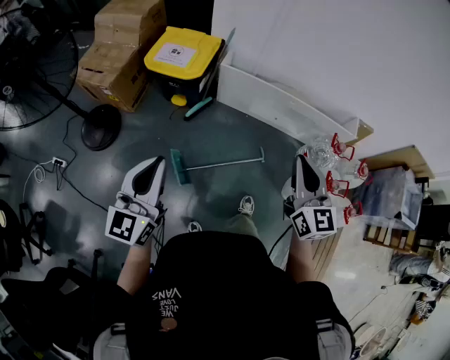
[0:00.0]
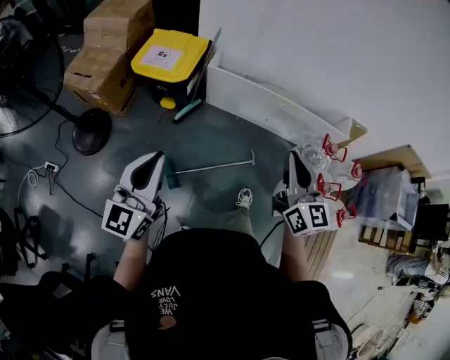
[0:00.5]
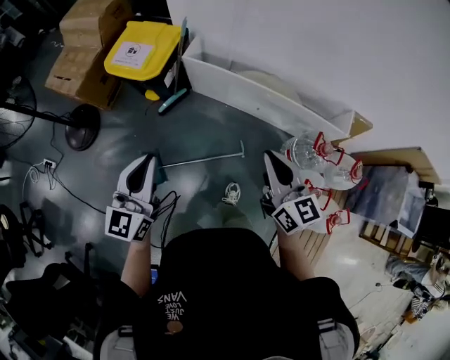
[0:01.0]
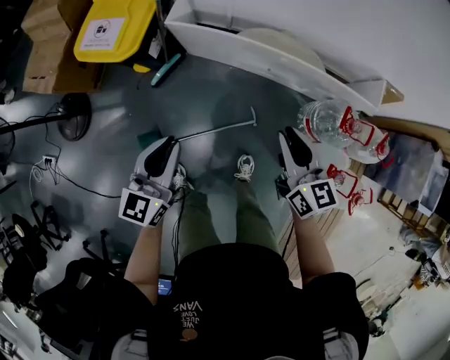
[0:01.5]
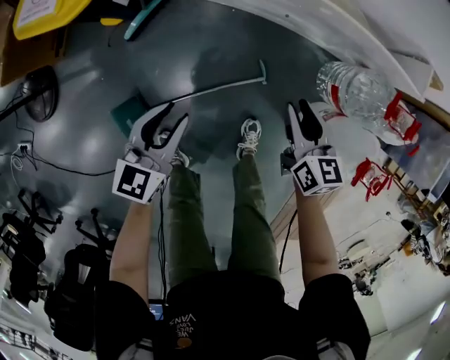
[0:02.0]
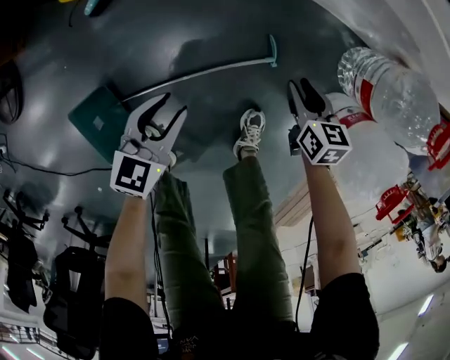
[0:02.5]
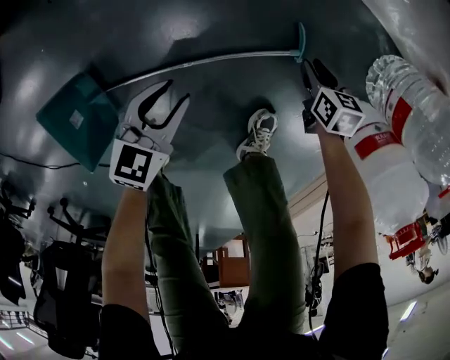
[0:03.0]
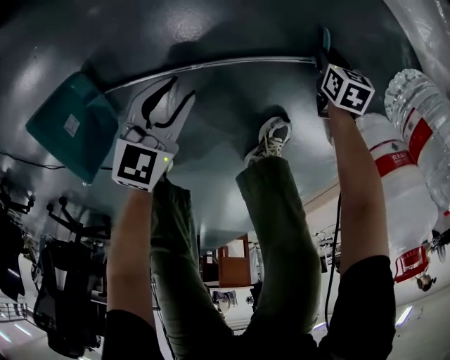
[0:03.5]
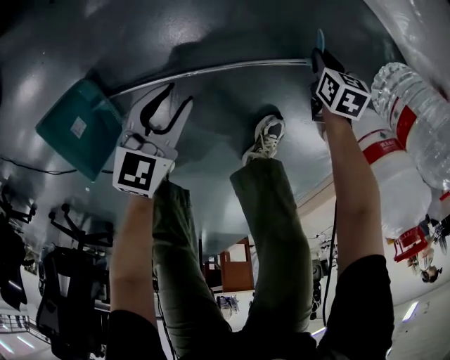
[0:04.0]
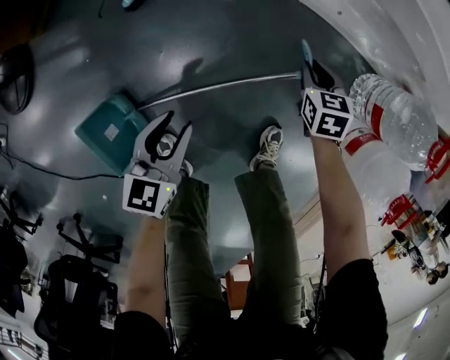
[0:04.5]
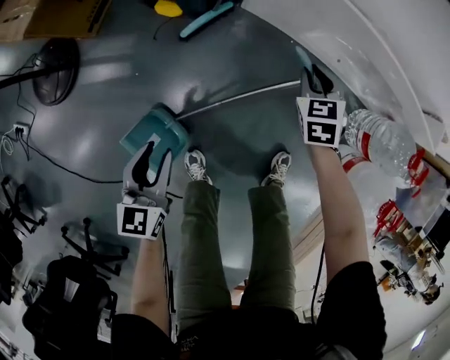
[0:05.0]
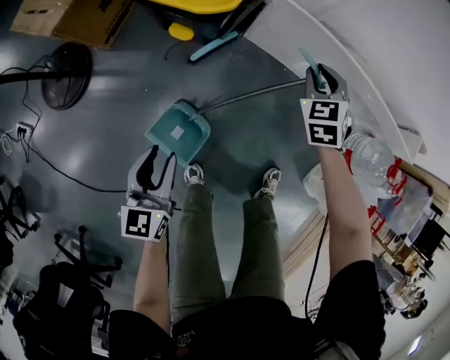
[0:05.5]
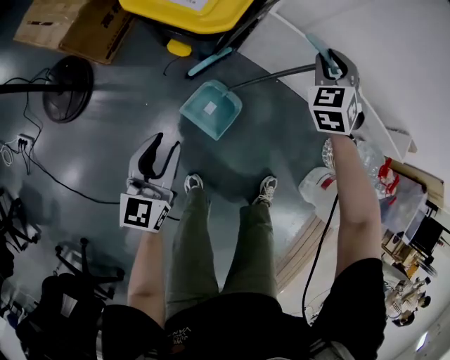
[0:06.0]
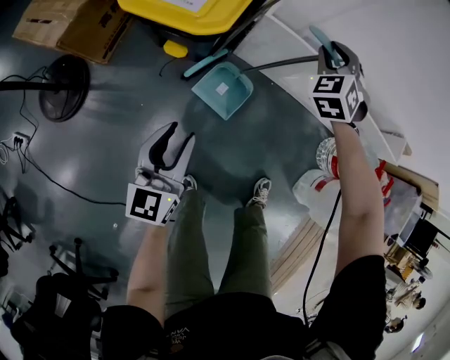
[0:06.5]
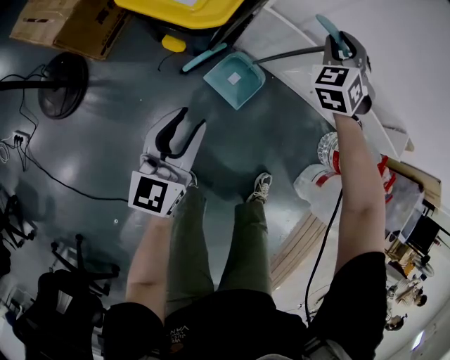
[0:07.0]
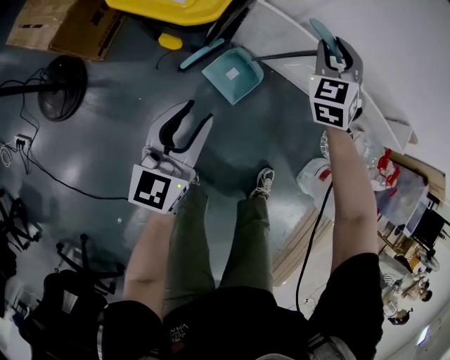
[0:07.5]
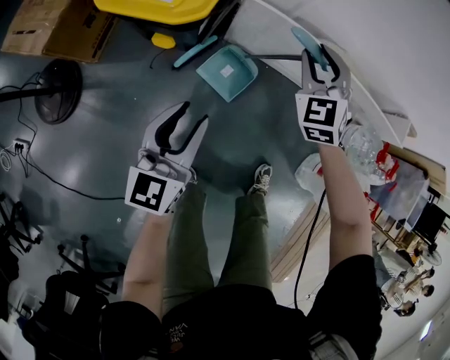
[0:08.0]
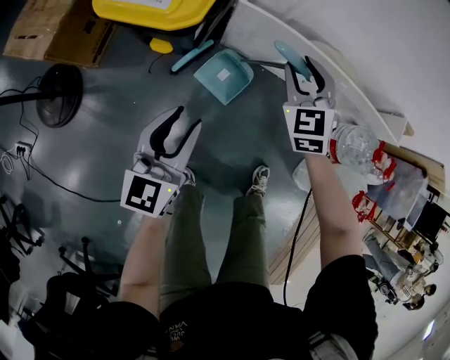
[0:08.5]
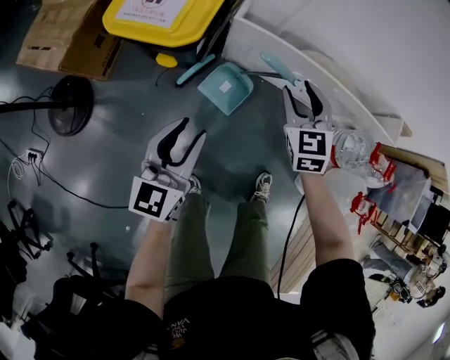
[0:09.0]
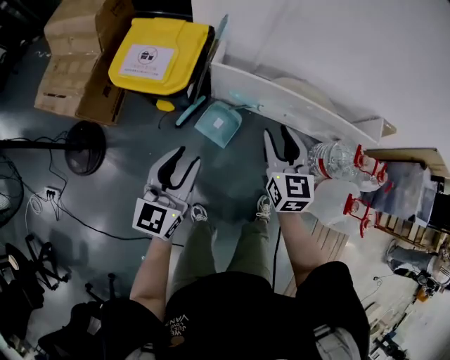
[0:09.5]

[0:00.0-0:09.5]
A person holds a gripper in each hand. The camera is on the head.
0:00.0 to 0:02.0: The left gripper travels downward, forward and to the right by about 60 cm, angles its fingers downward, by roughly 30 degrees, and opens; the right gripper shifts about 50 cm downward and forward, rotates approximately 40 degrees, and opens its fingers.
0:02.0 to 0:04.0: Both grippers move downward, about 40 cm. The right gripper tips its fingers downward by some 40 degrees.
0:04.0 to 0:05.5: Both grippers move upward and to the left, some 50 cm. The left gripper turns by approximately 30 degrees. The right gripper rotates around the line of its fingers by roughly 40 degrees, counterclockwise from behind.
0:05.5 to 0:07.5: The right gripper shifts roughly 15 cm upward and forward; the left gripper is displaced forward, upward and to the right by roughly 15 cm.
0:07.5 to 0:09.5: The right gripper heads backward and upward, covering about 20 cm, and rolls clockwise, seen from behind, by approximately 40 degrees; the left gripper heads upward, covering approximately 15 cm.

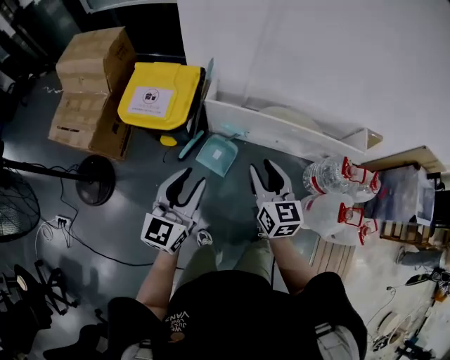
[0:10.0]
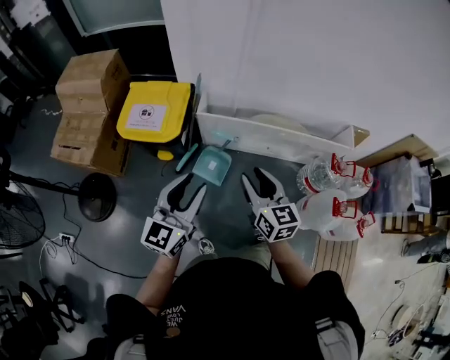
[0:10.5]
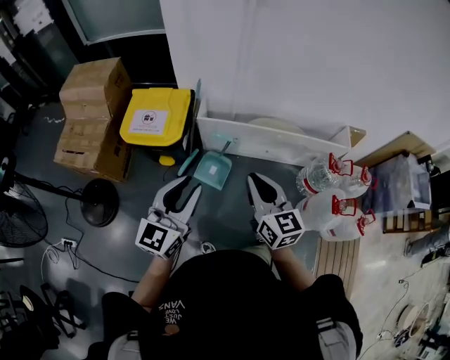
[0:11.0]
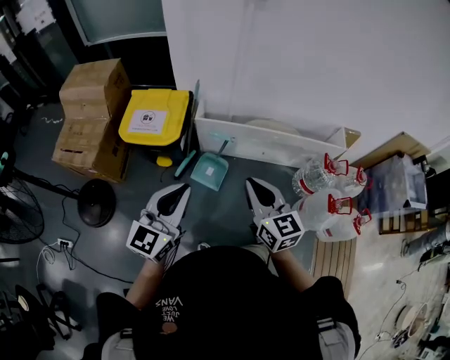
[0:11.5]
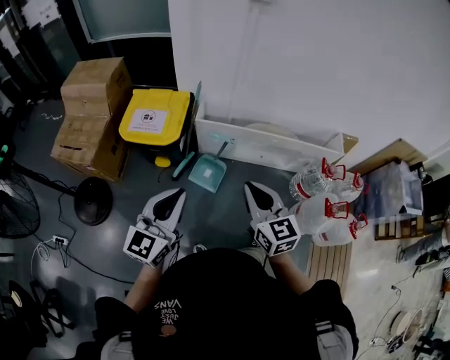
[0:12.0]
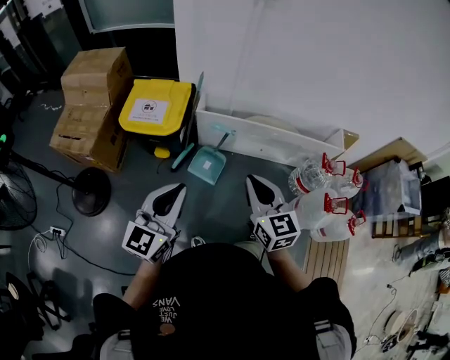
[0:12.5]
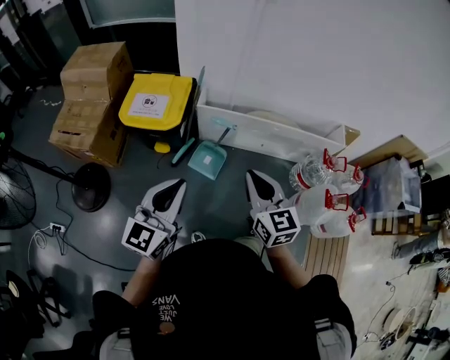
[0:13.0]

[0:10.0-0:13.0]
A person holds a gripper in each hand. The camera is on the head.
0:10.0 to 0:11.5: Both grippers travel together backward and upward, roughly 15 cm. The right gripper closes its fingers, while the left gripper closes.
0:11.5 to 0:13.0: There are only small adjustments of the grippers.

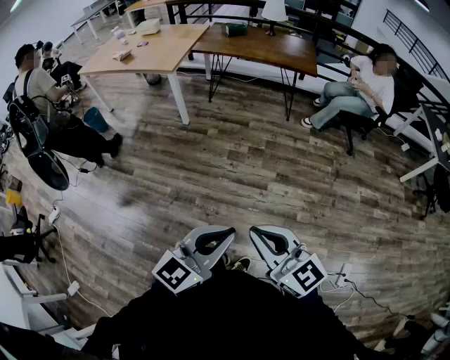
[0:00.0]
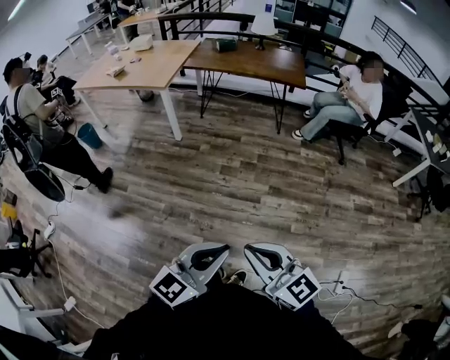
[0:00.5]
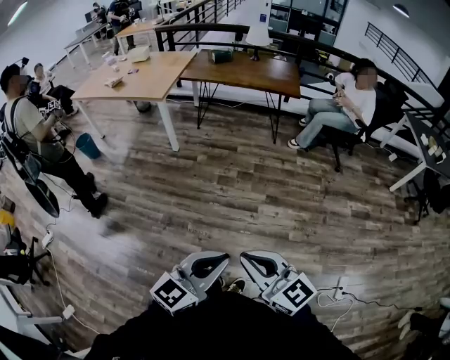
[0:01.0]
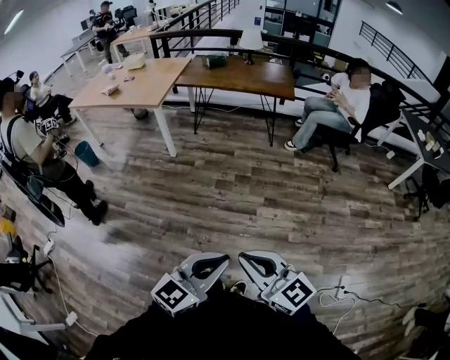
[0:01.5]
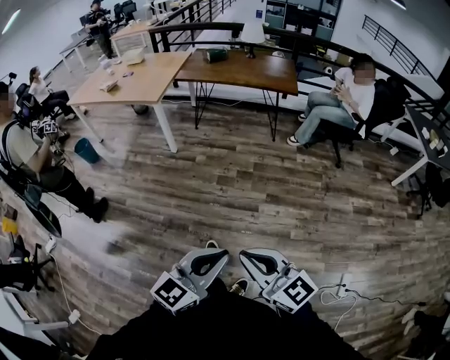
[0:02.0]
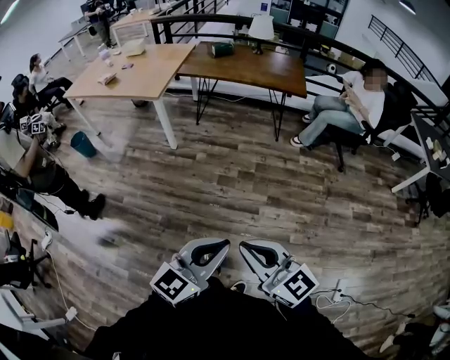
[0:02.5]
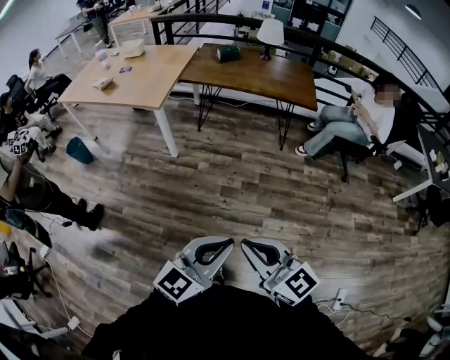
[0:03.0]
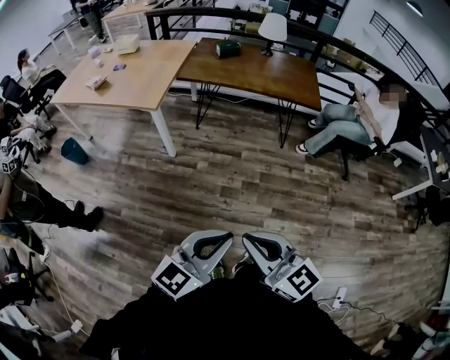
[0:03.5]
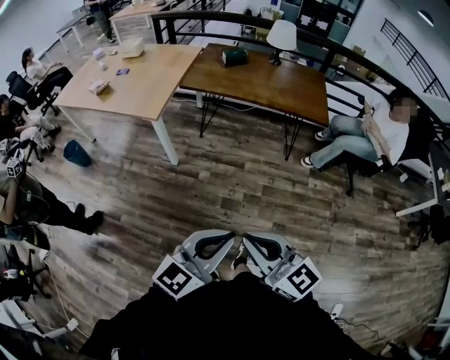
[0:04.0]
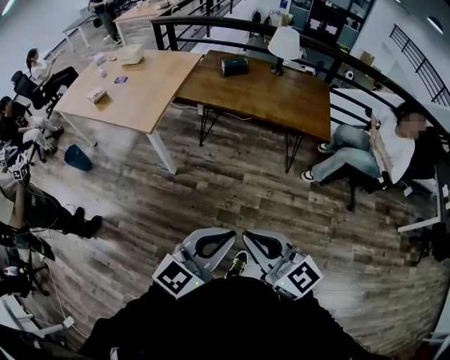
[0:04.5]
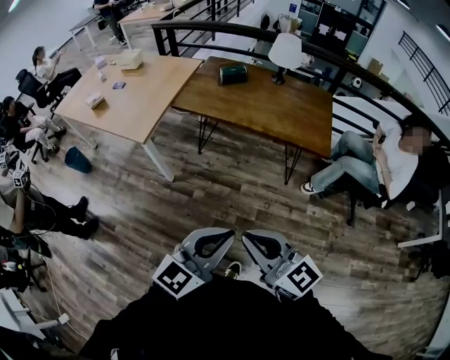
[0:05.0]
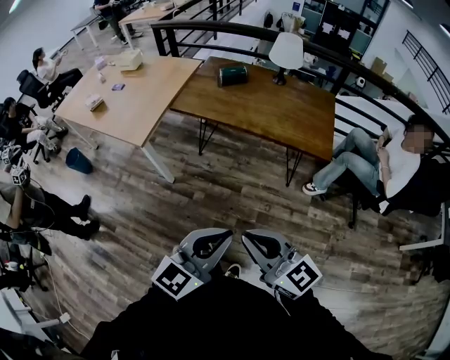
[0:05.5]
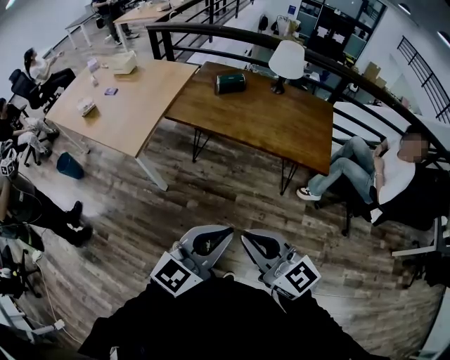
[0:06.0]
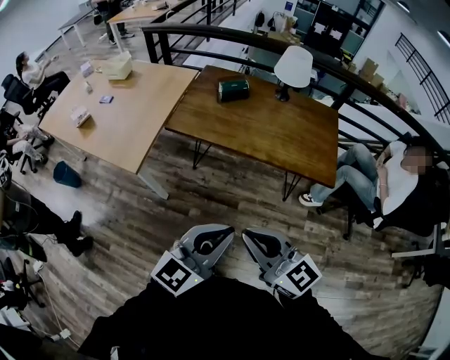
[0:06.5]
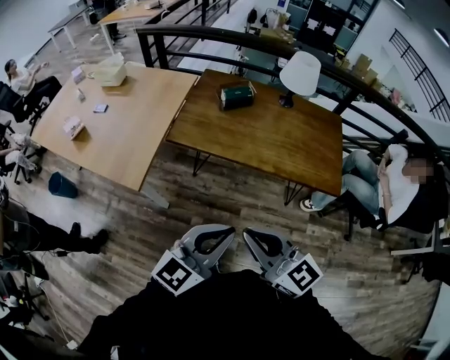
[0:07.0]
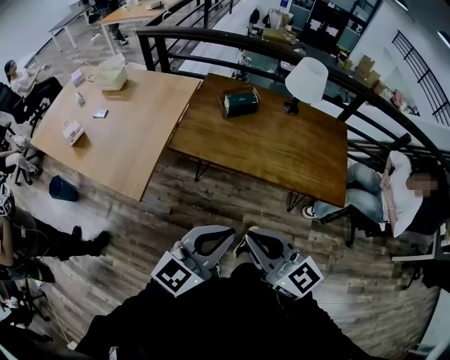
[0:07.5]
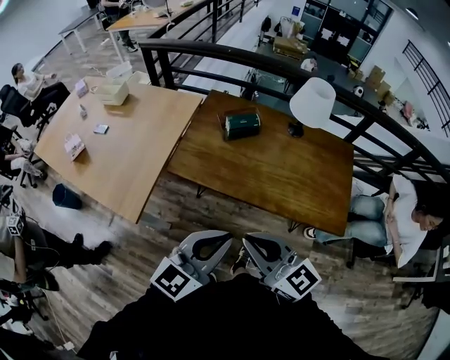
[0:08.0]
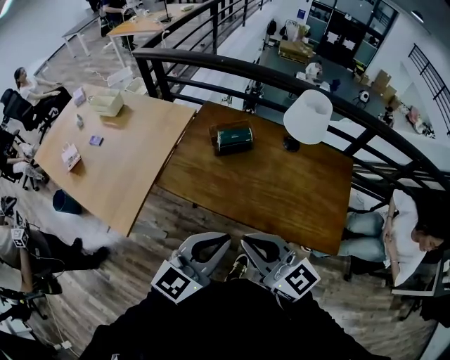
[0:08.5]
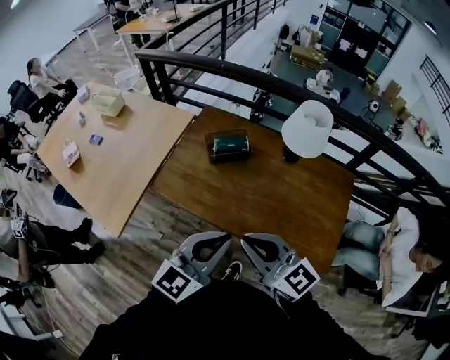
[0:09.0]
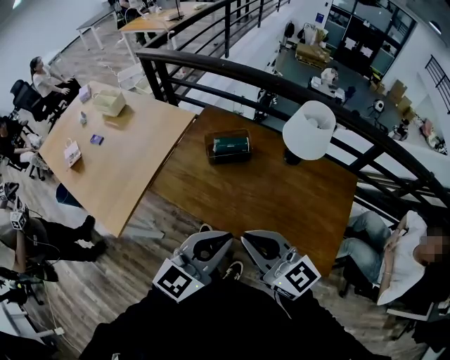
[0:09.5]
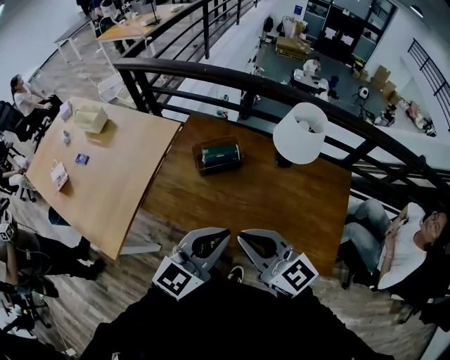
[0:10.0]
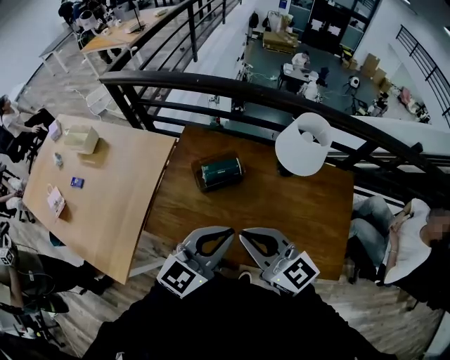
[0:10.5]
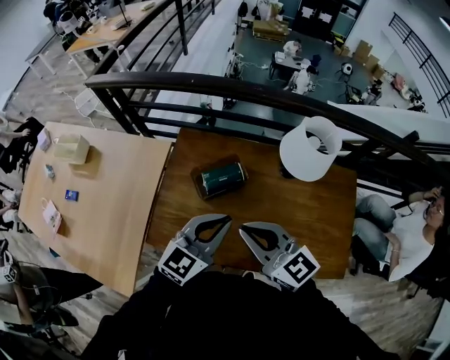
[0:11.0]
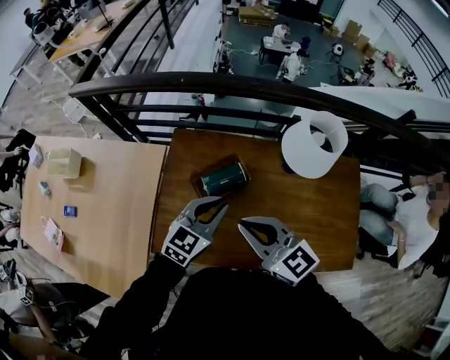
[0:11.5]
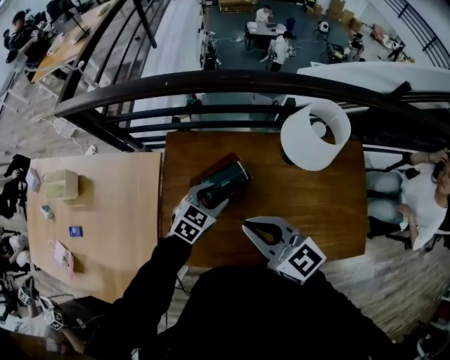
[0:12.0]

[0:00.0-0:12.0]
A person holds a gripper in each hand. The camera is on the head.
0:00.0 to 0:02.0: There are only small adjustments of the grippers.
0:02.0 to 0:04.0: The pair of grippers is taken forward, some 40 cm.
0:04.0 to 0:06.0: Both grippers move forward and to the right, about 30 cm.
0:06.0 to 0:08.0: The two grippers go about 35 cm forward.
0:08.0 to 0:10.0: The two grippers go some 25 cm forward and to the right.
0:10.0 to 0:12.0: The right gripper is displaced forward by some 25 cm. Meanwhile the left gripper moves forward and downward, approximately 40 cm, tips its fingers downward by approximately 30 degrees, and opens its fingers.

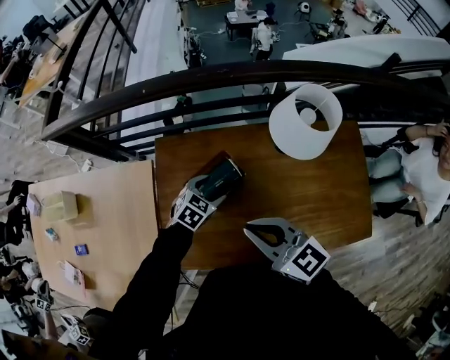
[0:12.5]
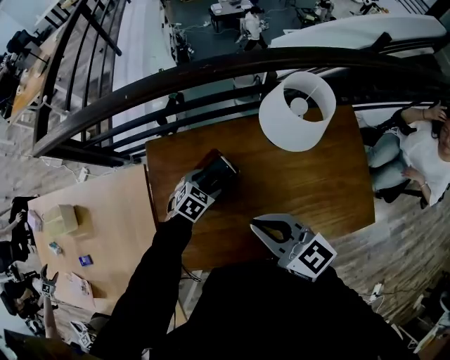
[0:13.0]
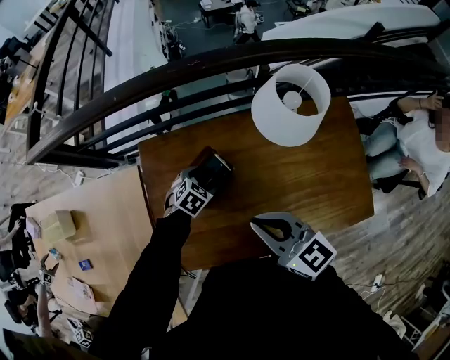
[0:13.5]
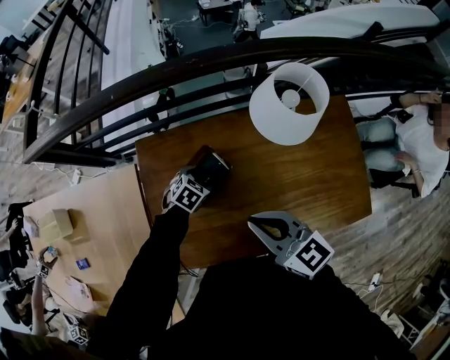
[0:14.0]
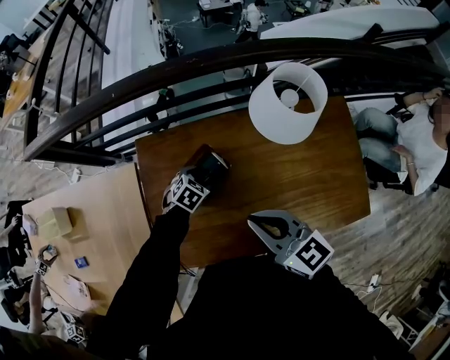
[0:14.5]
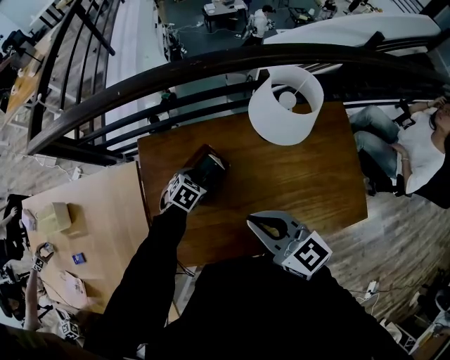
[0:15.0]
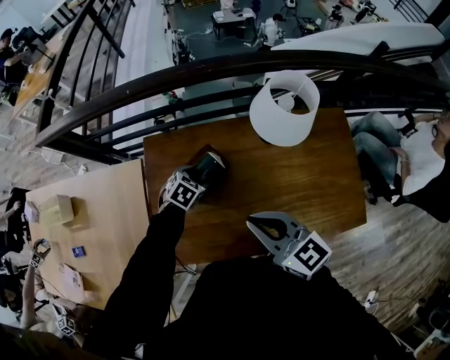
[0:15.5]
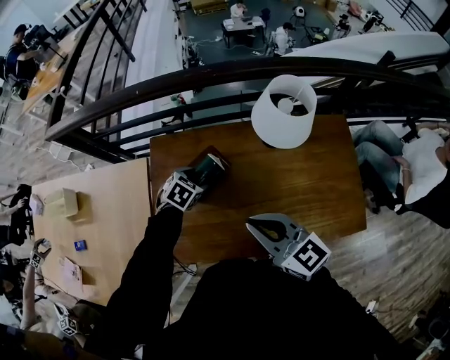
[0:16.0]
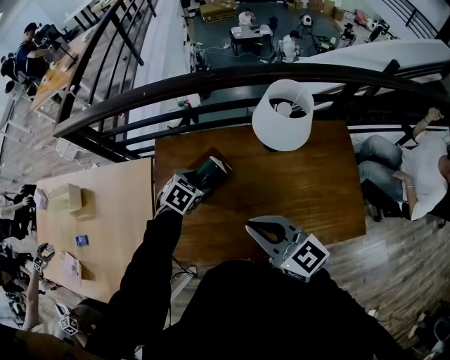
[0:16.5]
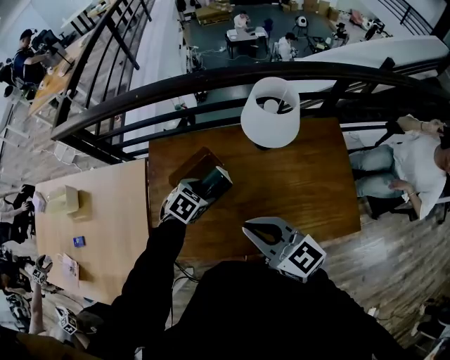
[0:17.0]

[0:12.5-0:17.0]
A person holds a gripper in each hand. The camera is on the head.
0:12.5 to 0:14.5: The left gripper is displaced downward by about 5 cm.
0:14.5 to 0:17.0: The right gripper travels backward by roughly 10 cm. The left gripper heads upward and backward, covering approximately 15 cm.
